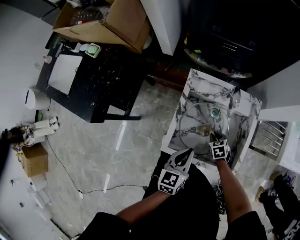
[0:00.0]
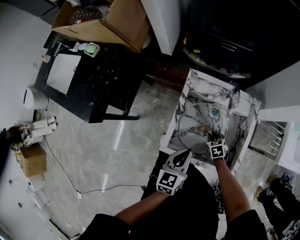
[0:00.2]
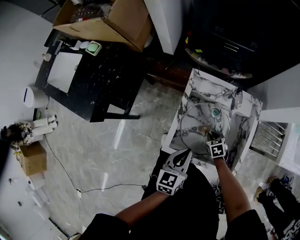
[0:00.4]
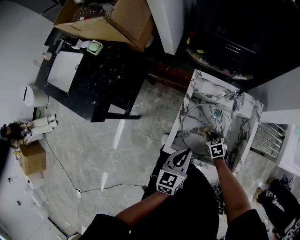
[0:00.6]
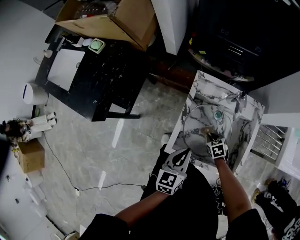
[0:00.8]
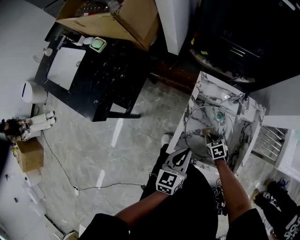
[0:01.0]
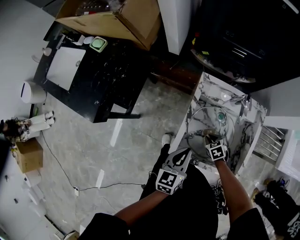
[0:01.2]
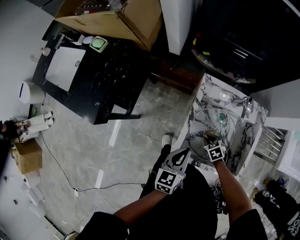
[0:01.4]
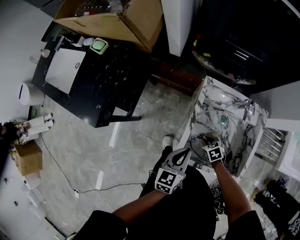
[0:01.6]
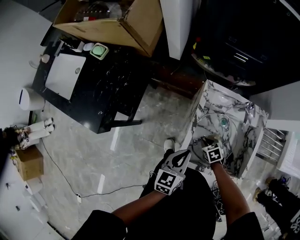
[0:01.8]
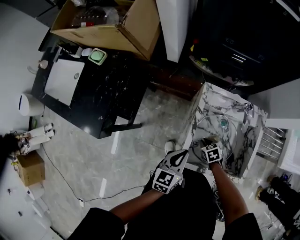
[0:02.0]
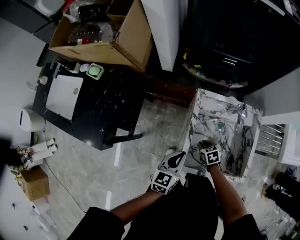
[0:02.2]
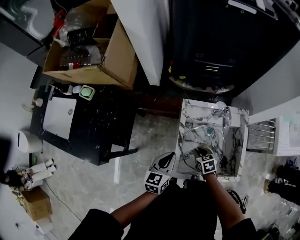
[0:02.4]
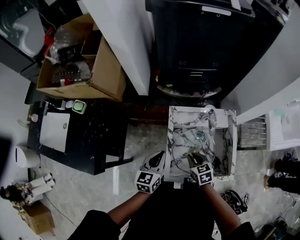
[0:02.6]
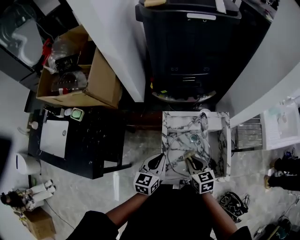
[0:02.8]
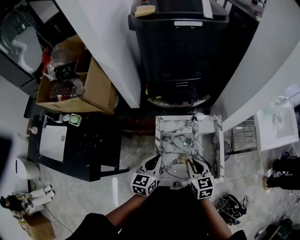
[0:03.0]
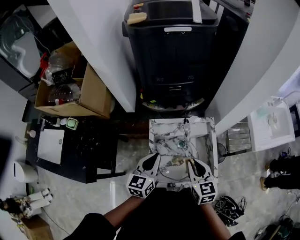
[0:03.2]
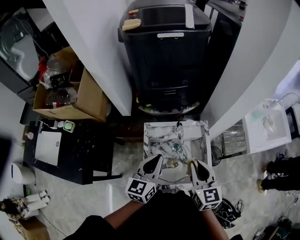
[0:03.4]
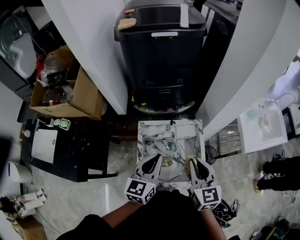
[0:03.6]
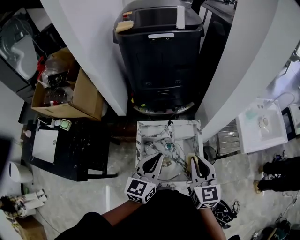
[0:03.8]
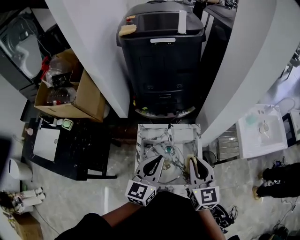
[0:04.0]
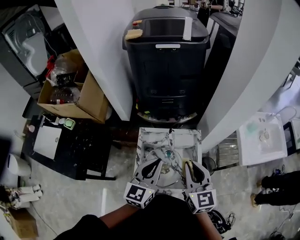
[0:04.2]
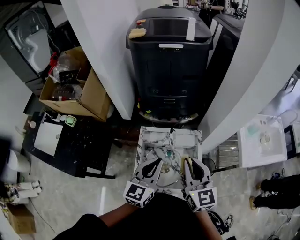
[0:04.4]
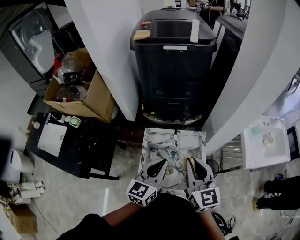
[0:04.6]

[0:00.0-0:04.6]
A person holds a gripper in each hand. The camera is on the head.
0:00.0 to 0:01.6: Both grippers travel together to the left, some 10 cm.
0:01.6 to 0:03.0: The left gripper travels upward by roughly 10 cm. Meanwhile the right gripper heads upward, covering roughly 30 cm, and tilts its fingers roughly 30 degrees upward.
0:03.0 to 0:04.6: The left gripper moves upward and to the right, some 20 cm. Meanwhile the right gripper moves upward, about 20 cm, and rotates roughly 30 degrees.

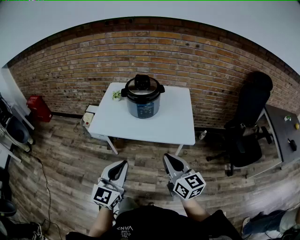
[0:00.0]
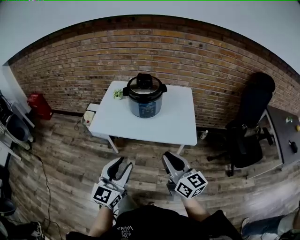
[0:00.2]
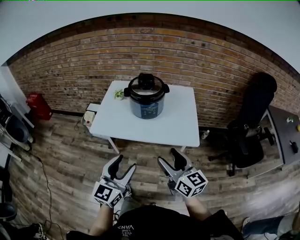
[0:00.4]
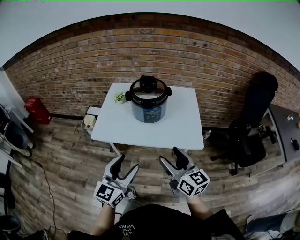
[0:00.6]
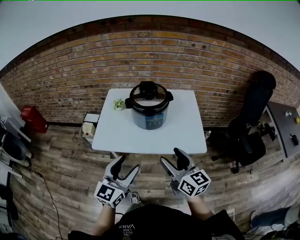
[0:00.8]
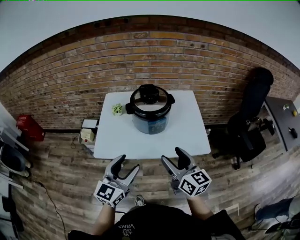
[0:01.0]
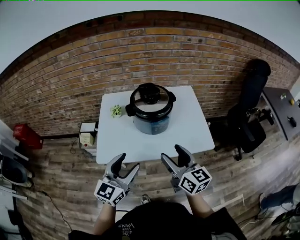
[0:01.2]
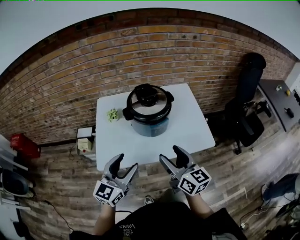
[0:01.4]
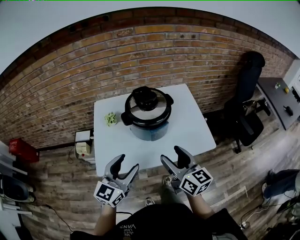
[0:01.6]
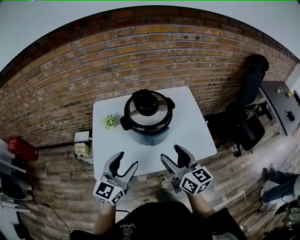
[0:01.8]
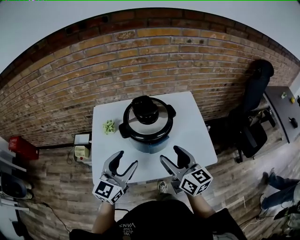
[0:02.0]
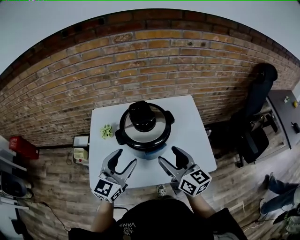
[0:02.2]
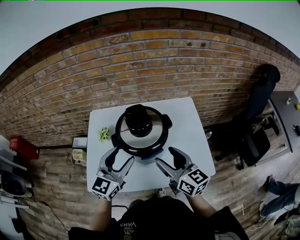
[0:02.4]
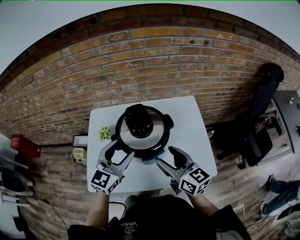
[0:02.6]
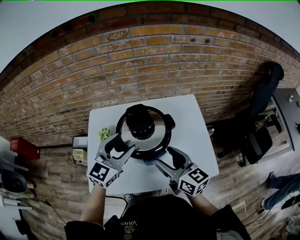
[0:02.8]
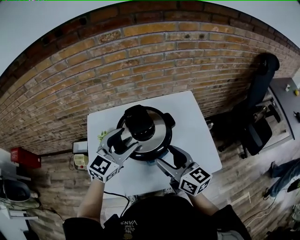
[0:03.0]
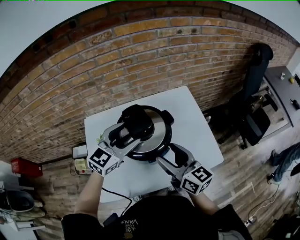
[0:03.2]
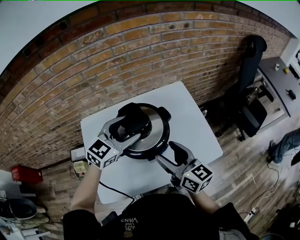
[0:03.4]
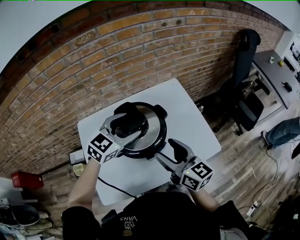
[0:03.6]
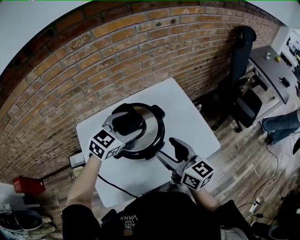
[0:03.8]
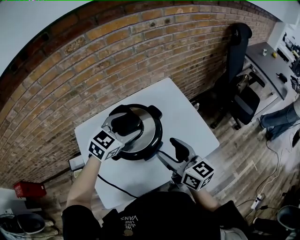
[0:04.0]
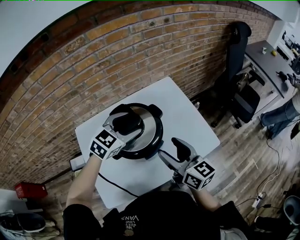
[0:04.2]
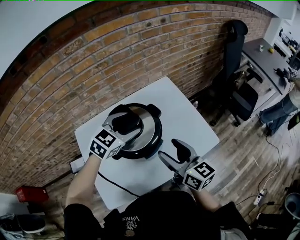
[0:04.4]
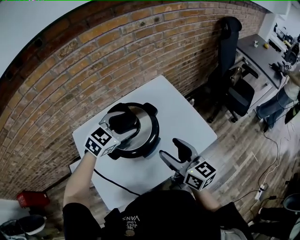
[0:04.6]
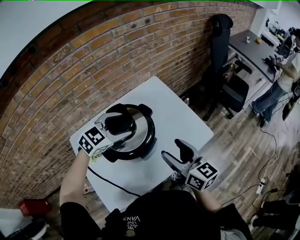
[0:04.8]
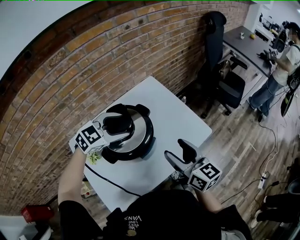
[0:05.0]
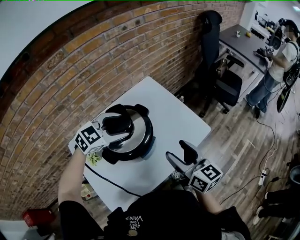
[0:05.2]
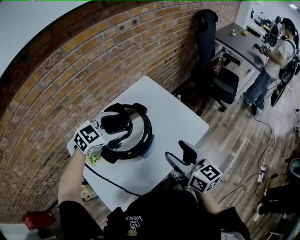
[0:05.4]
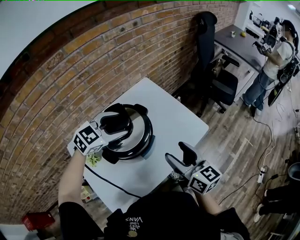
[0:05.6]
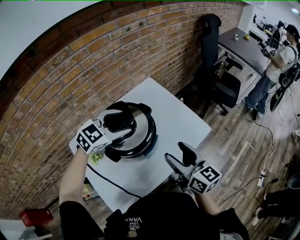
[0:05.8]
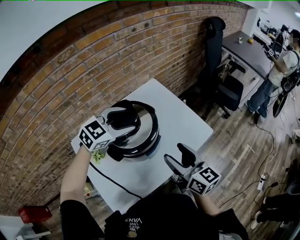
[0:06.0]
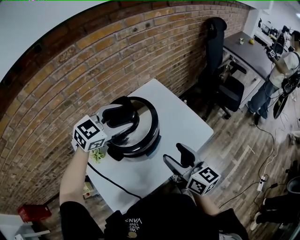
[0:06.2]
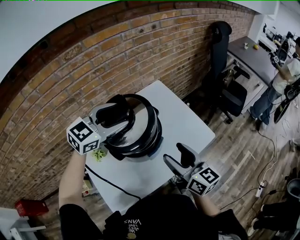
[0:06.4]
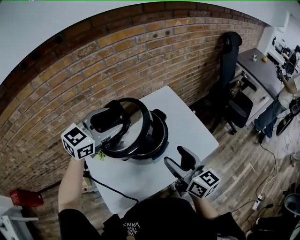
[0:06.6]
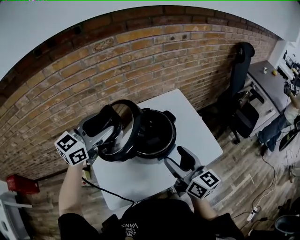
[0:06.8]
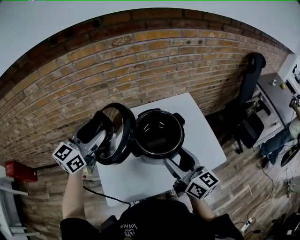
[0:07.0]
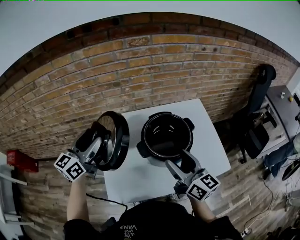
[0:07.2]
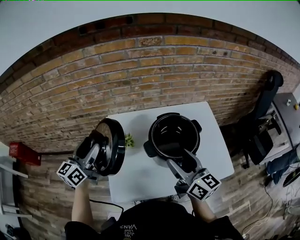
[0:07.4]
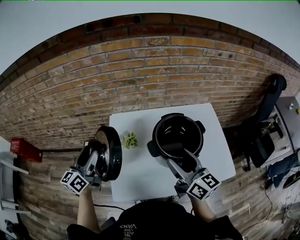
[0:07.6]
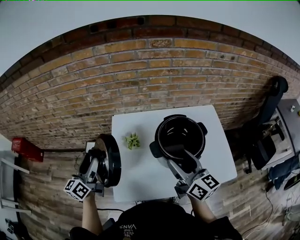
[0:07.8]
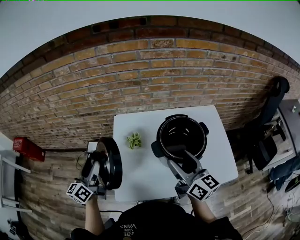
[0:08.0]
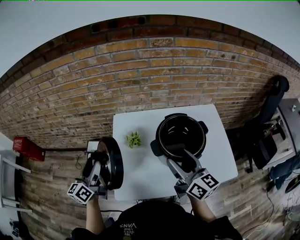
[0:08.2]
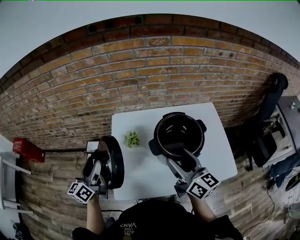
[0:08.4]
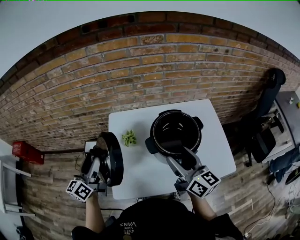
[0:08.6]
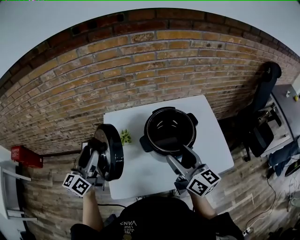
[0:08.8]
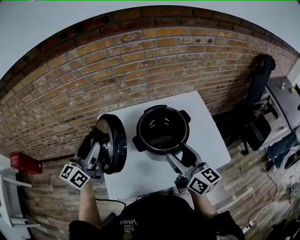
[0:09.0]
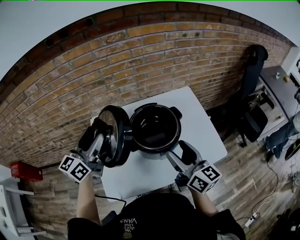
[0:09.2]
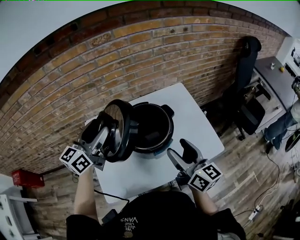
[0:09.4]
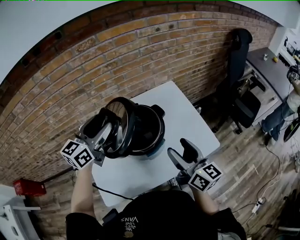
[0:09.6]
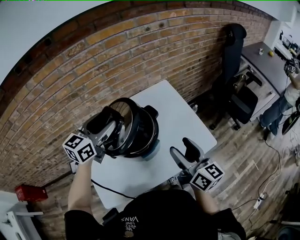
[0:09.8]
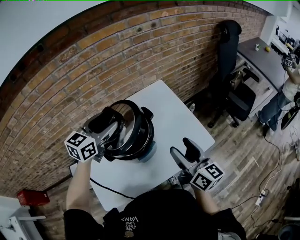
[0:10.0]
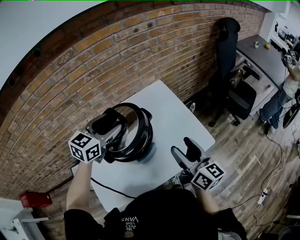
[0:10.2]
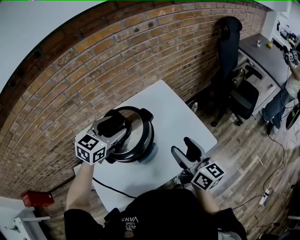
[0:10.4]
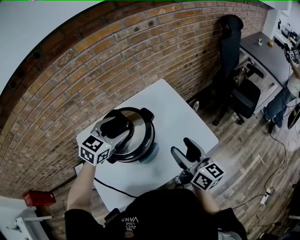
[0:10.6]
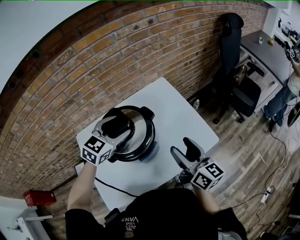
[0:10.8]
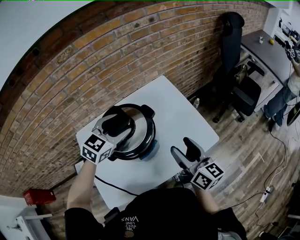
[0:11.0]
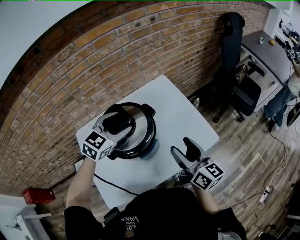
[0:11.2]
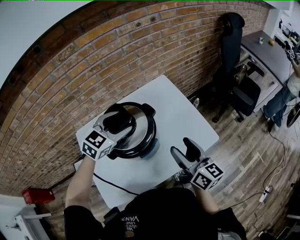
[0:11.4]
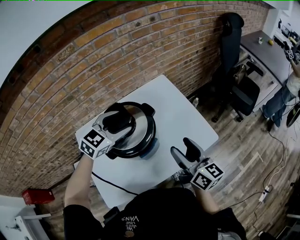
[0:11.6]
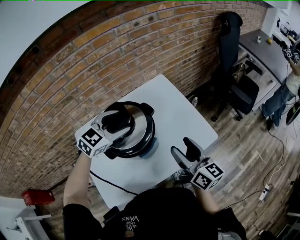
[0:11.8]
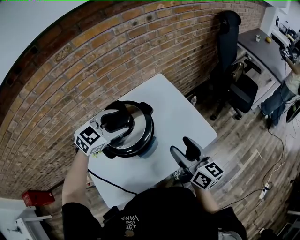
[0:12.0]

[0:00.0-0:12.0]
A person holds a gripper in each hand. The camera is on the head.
0:00.0 to 0:01.6: The two grippers go roughly 25 cm forward and to the left. The left gripper swivels approximately 20 degrees, and opens up. Meanwhile the right gripper opens.
0:01.6 to 0:03.0: The left gripper shifts about 25 cm forward. Meanwhile the right gripper moves forward, some 15 cm.
0:03.0 to 0:04.4: The left gripper heads forward and to the right, covering about 10 cm, and rotates some 30 degrees.
0:04.4 to 0:06.0: The left gripper rotates approximately 20 degrees. The right gripper ends up roughly 5 cm from where it was.
0:06.0 to 0:07.6: The right gripper changes place by roughly 15 cm, and turns by about 30 degrees; the left gripper goes upward and returns, about 10 cm each way, and rotates about 90 degrees.
0:07.6 to 0:09.0: The right gripper moves to the right, some 5 cm; the left gripper heads to the right, covering some 10 cm.
0:09.0 to 0:10.4: The left gripper ends up about 30 cm from where it was, and changes its angle by some 50 degrees, while the right gripper changes place by about 15 cm.
0:10.4 to 0:12.0: The left gripper rotates about 20 degrees.

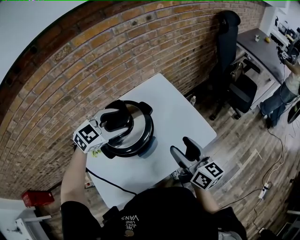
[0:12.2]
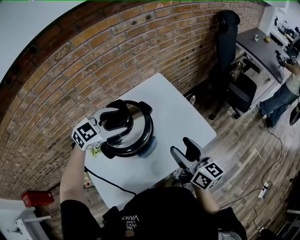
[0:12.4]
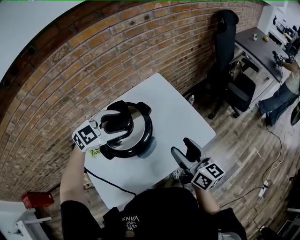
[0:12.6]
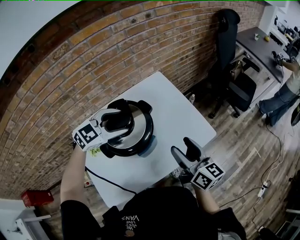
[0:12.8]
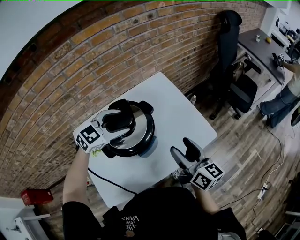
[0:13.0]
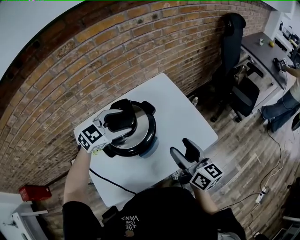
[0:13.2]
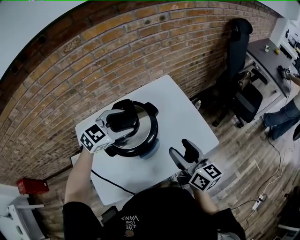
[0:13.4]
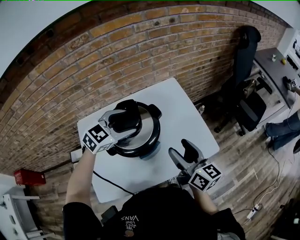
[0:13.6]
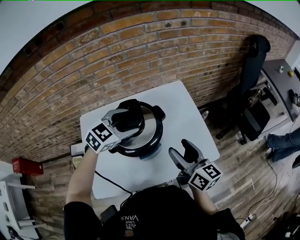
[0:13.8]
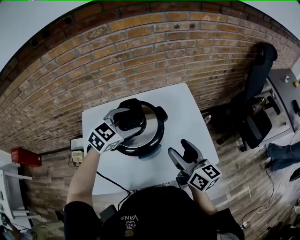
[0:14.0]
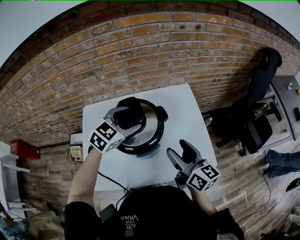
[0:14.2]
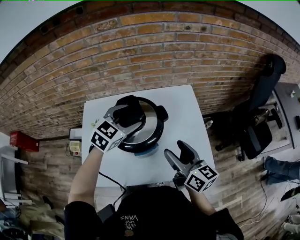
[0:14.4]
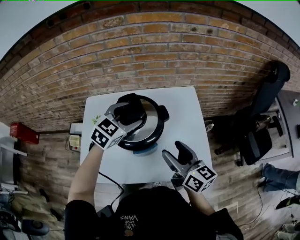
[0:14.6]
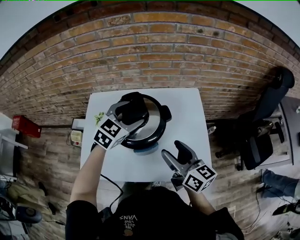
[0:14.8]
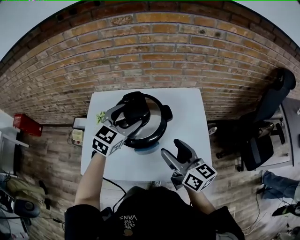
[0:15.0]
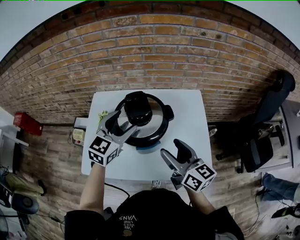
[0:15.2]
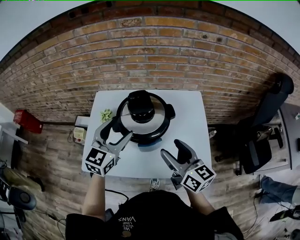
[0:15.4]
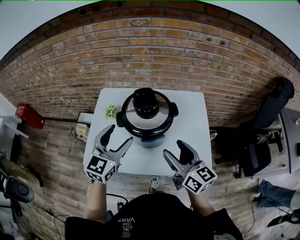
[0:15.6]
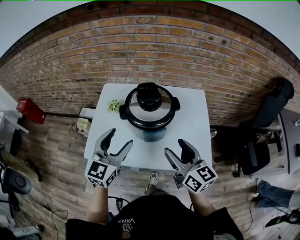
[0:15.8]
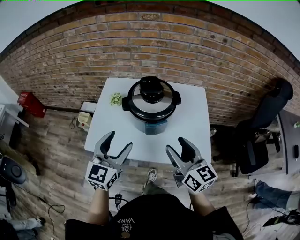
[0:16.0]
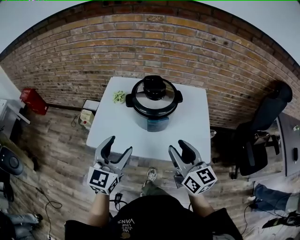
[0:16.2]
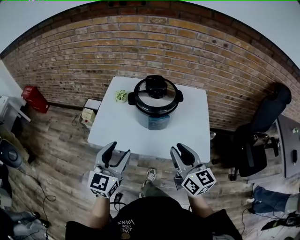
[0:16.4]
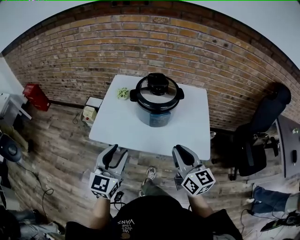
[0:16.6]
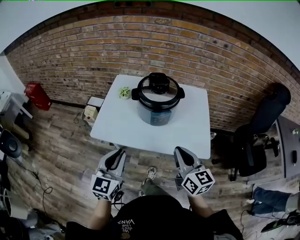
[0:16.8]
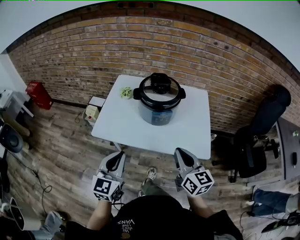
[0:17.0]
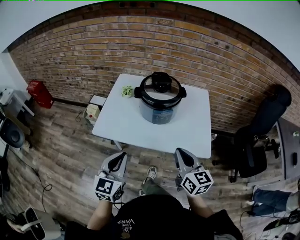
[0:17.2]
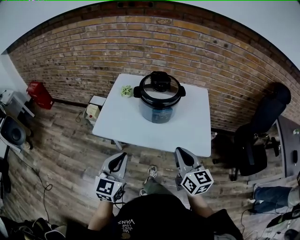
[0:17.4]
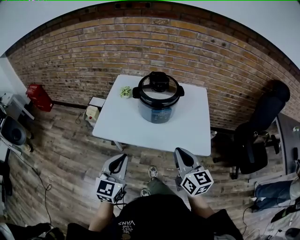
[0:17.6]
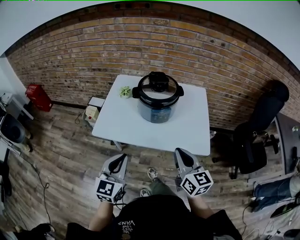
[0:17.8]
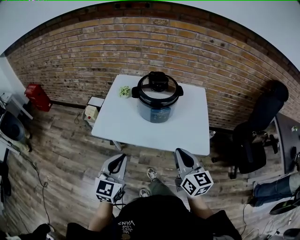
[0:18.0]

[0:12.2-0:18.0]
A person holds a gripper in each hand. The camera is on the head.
0:12.2 to 0:13.6: There are only small adjustments of the grippers.
0:13.6 to 0:15.0: The right gripper rotates some 30 degrees; the left gripper changes its angle by about 40 degrees.
0:15.0 to 0:16.6: The left gripper is displaced backward and to the left by approximately 35 cm, swivels about 30 degrees, and closes; the right gripper goes roughly 20 cm backward, and closes.
0:16.6 to 0:18.0: The left gripper heads backward, covering approximately 5 cm, and closes up.

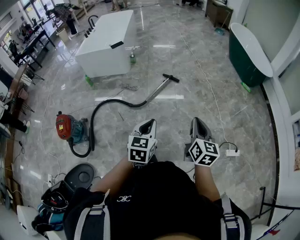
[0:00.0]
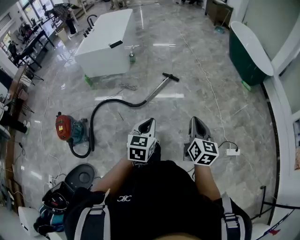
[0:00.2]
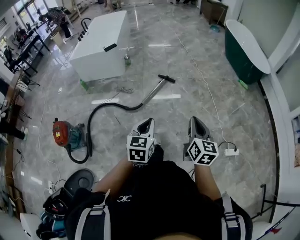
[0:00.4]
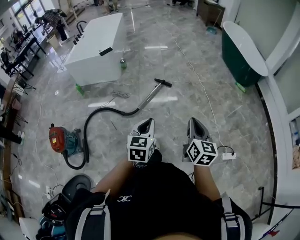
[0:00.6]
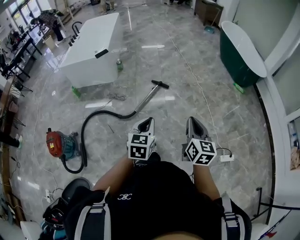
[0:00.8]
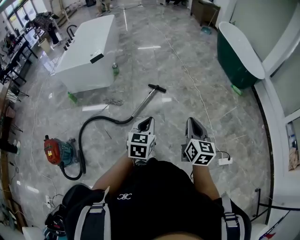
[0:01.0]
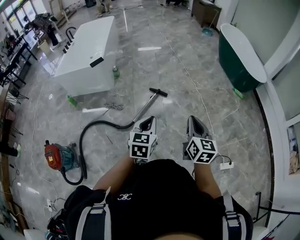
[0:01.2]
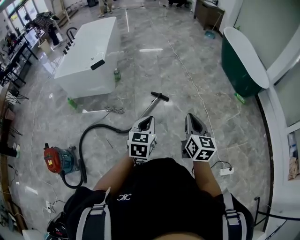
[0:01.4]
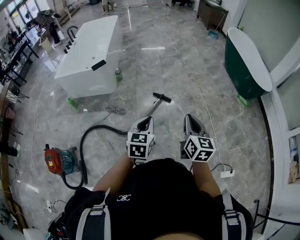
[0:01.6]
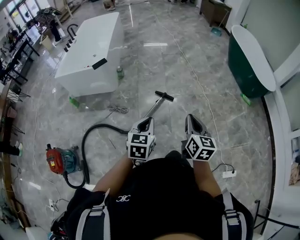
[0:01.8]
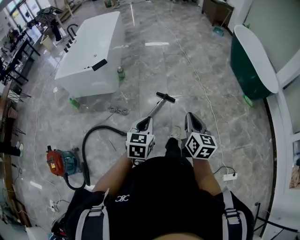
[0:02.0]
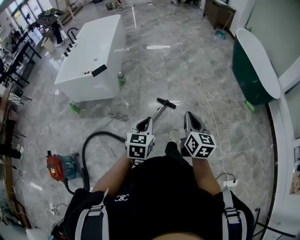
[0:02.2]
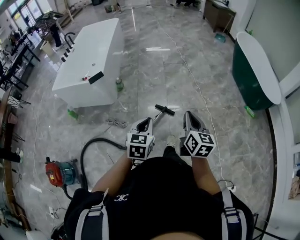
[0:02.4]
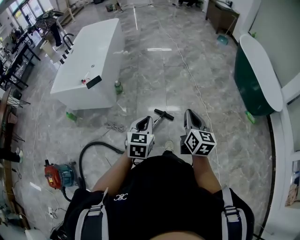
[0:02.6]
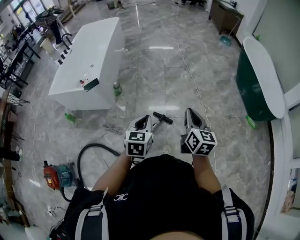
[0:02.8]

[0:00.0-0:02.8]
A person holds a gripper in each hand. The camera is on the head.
0:00.0 to 0:01.4: The grippers both shift forward by about 35 cm.
0:01.4 to 0:02.8: Both grippers move forward, roughly 40 cm.
